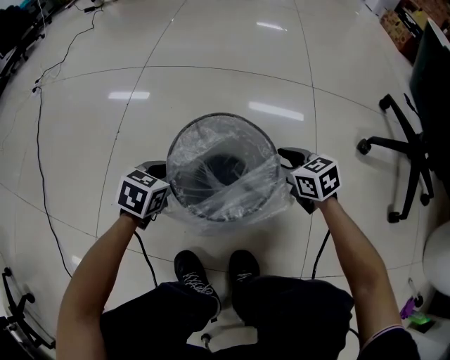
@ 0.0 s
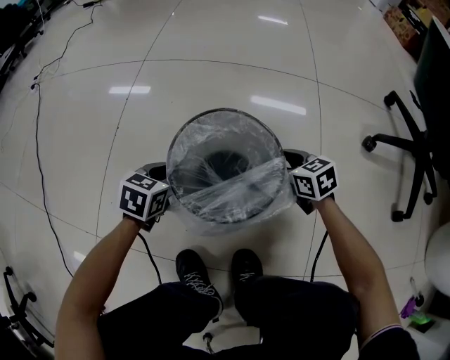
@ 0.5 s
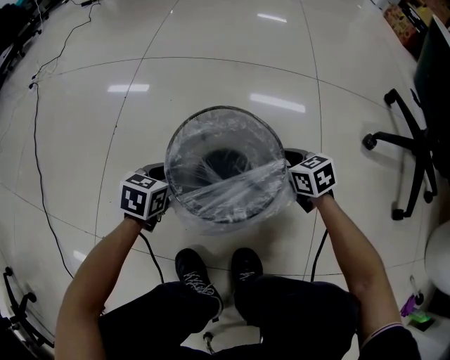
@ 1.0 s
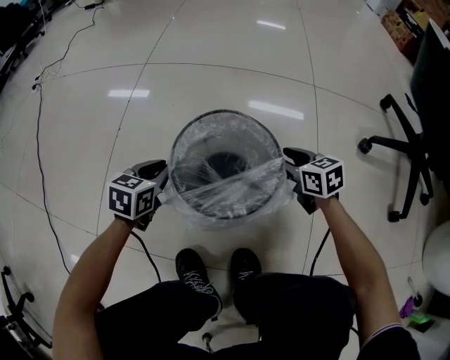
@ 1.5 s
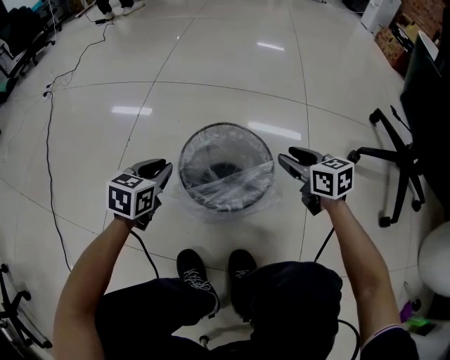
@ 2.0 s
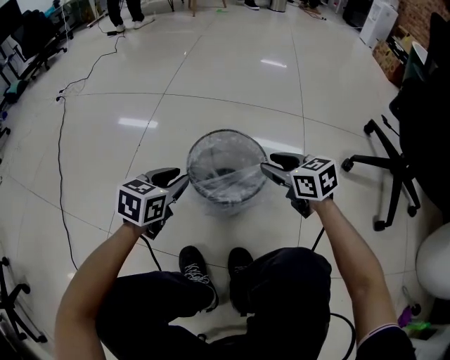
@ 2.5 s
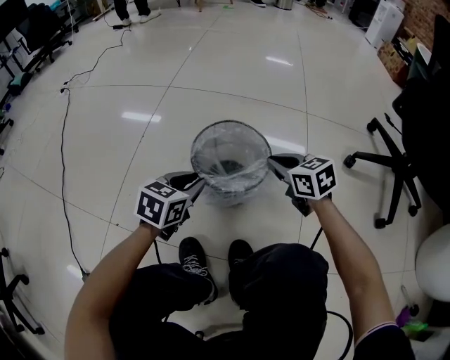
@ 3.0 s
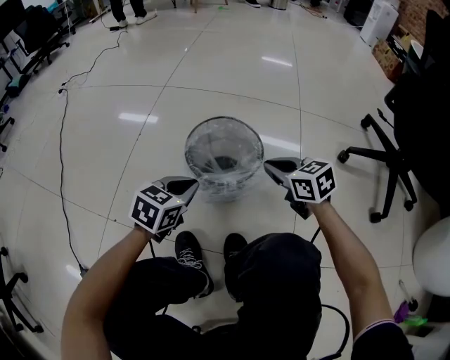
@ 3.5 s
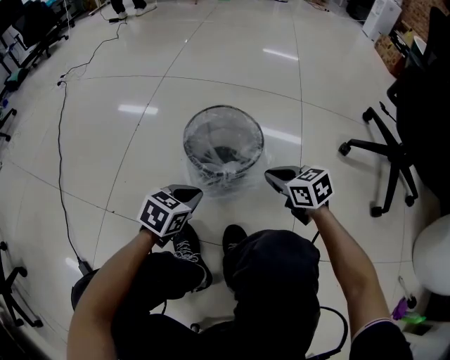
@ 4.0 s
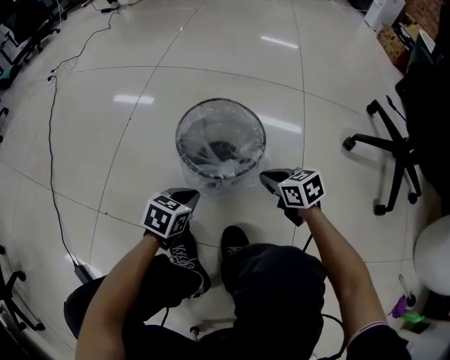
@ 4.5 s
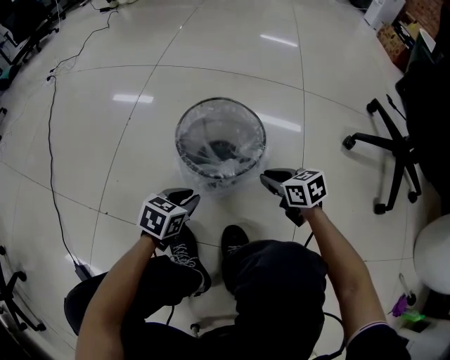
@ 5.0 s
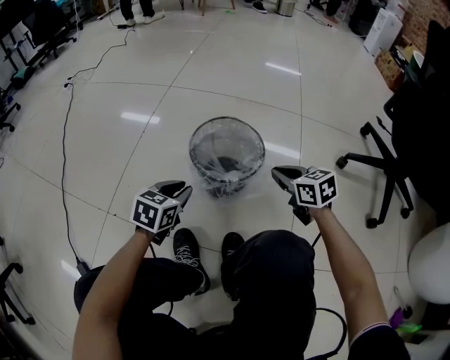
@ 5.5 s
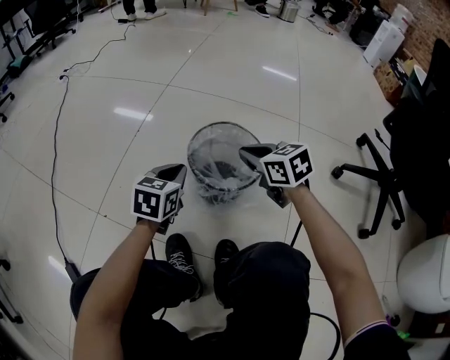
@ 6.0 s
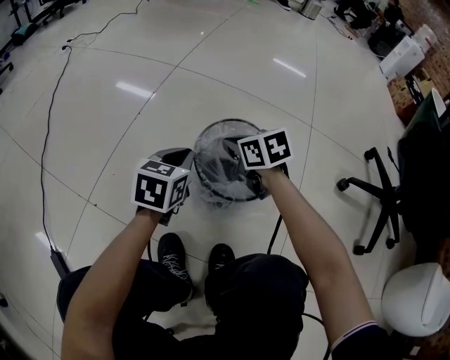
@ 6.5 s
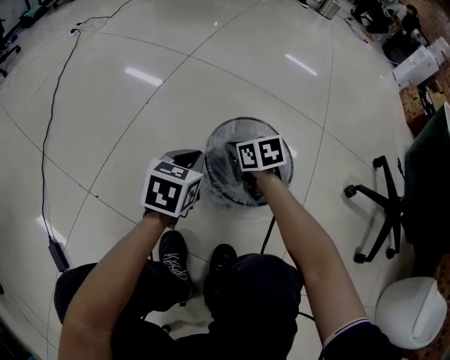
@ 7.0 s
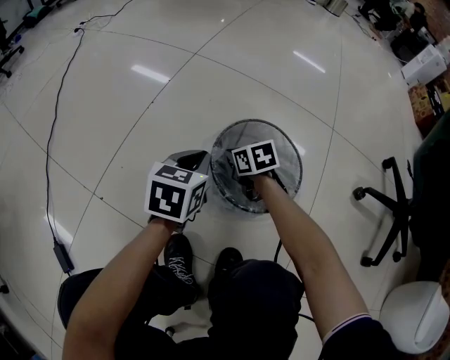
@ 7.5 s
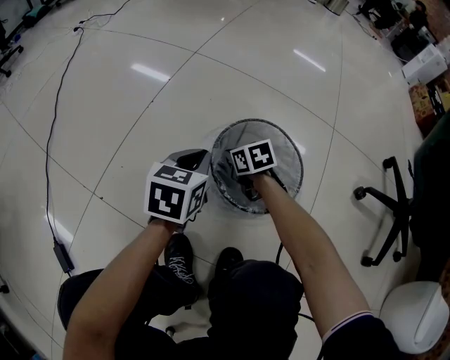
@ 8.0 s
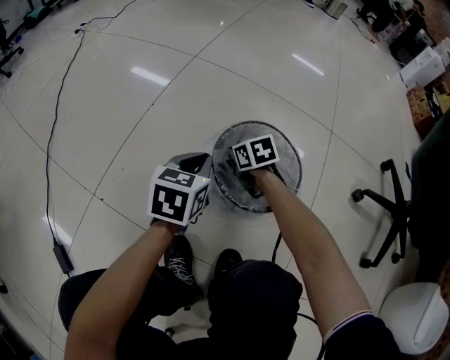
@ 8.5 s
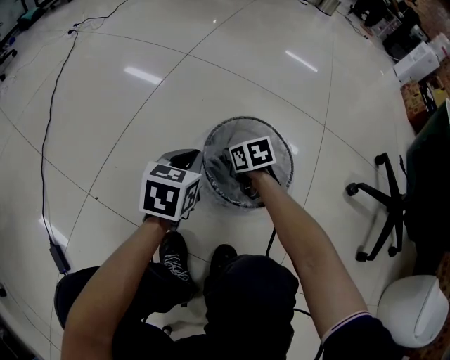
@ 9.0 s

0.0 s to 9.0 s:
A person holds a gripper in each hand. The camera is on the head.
0.0 to 2.0 s: Both grippers travel together upward, roughly 10 cm.
2.0 to 4.5 s: The right gripper travels backward and downward by some 15 cm, and closes up; the left gripper is displaced backward, to the right and downward by roughly 20 cm.
4.5 to 7.0 s: The right gripper heads forward and to the left, covering approximately 25 cm; the left gripper heads forward and upward, covering roughly 15 cm, and changes its angle by some 20 degrees.

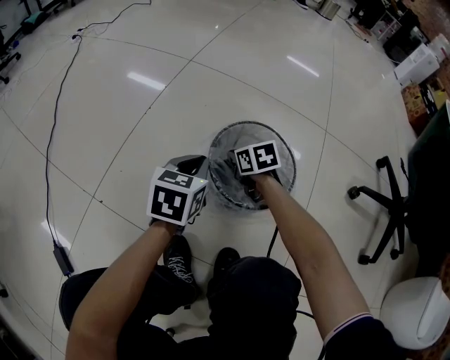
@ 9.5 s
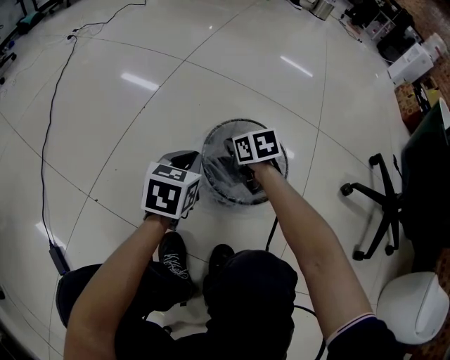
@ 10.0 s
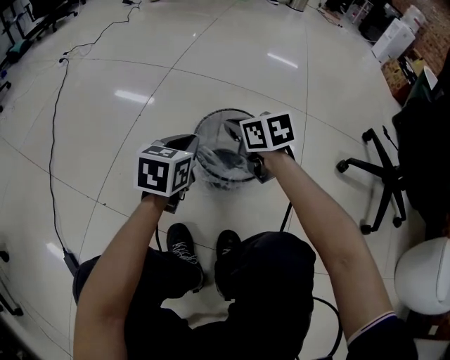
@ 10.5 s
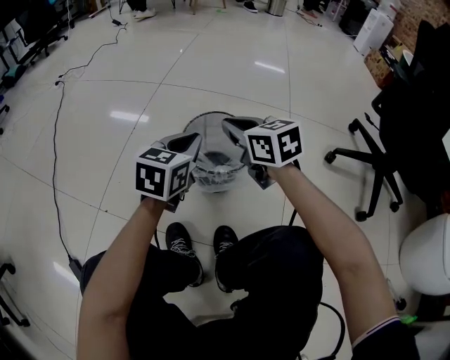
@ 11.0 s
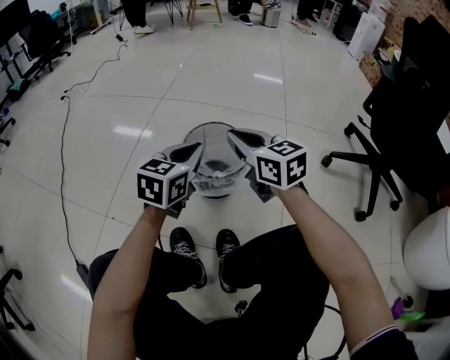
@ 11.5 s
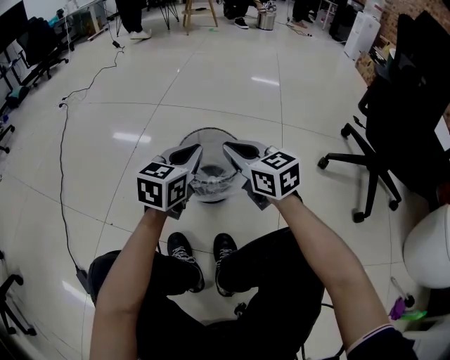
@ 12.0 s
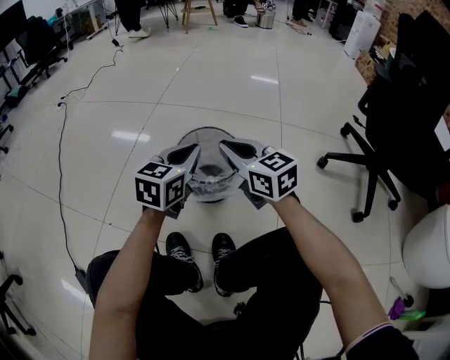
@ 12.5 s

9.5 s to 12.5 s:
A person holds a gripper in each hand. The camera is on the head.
9.5 to 11.0 s: The left gripper shifts about 15 cm upward, backward and to the right; the right gripper travels upward and backward by approximately 30 cm, and changes its angle by about 30 degrees.
11.0 to 12.5 s: The right gripper moves backward, some 5 cm.

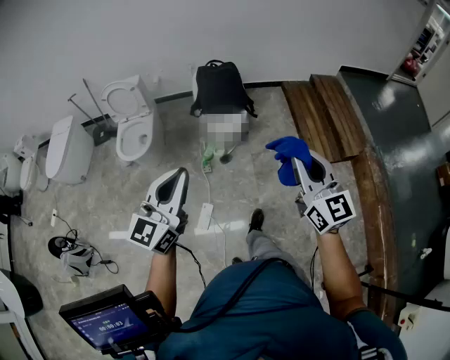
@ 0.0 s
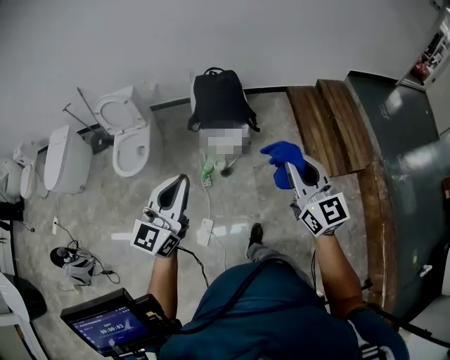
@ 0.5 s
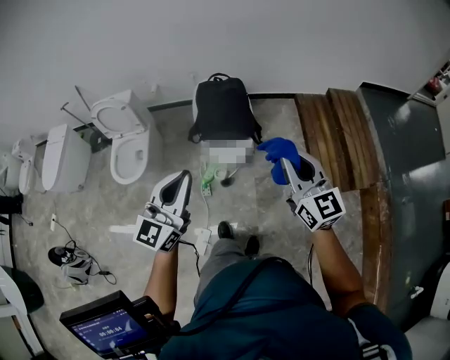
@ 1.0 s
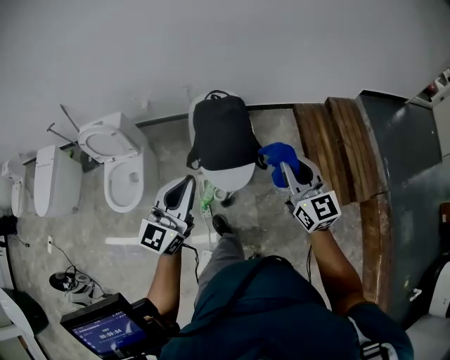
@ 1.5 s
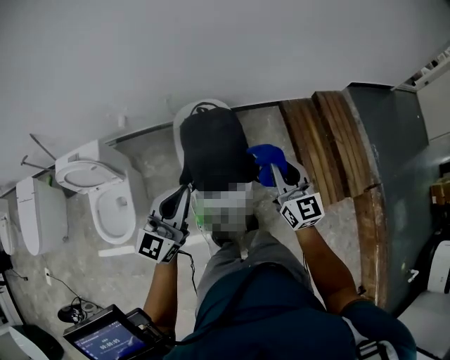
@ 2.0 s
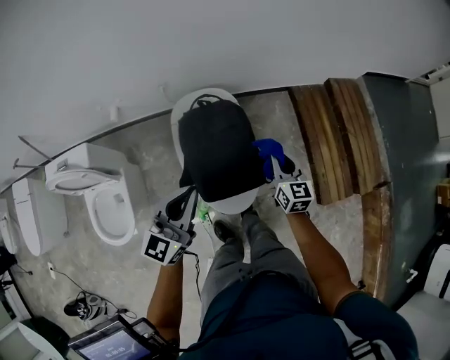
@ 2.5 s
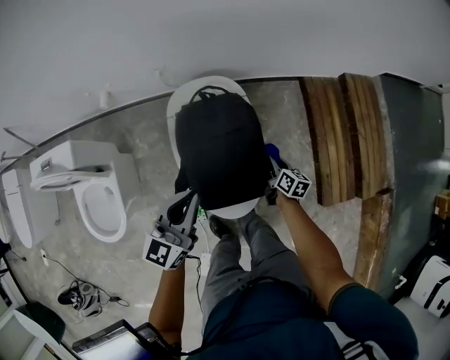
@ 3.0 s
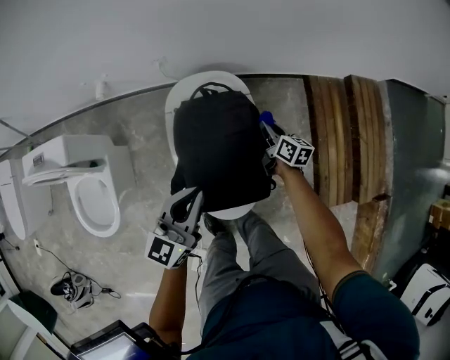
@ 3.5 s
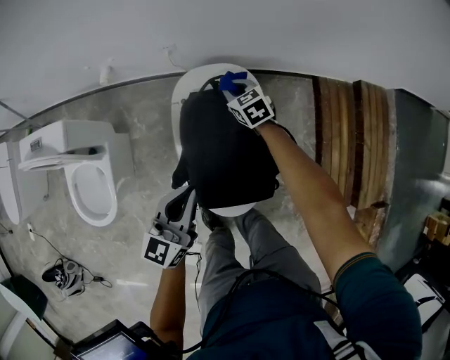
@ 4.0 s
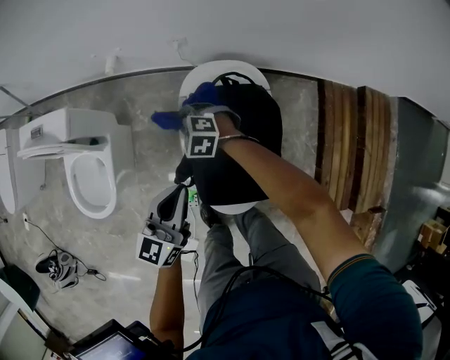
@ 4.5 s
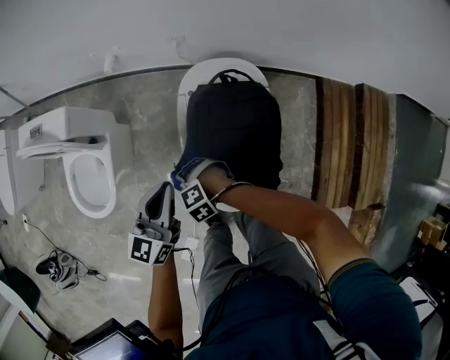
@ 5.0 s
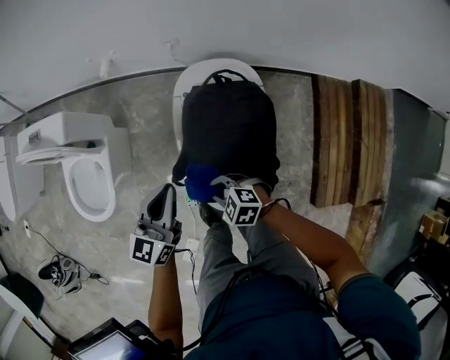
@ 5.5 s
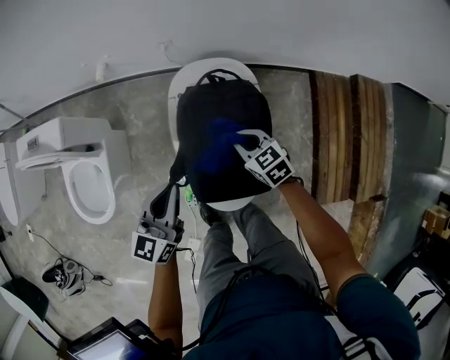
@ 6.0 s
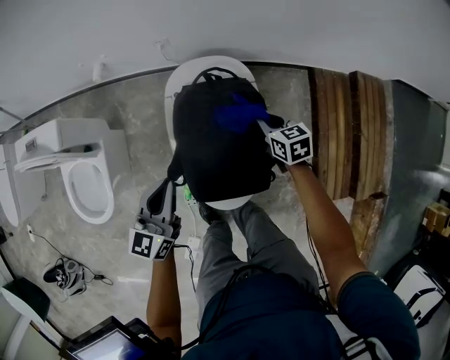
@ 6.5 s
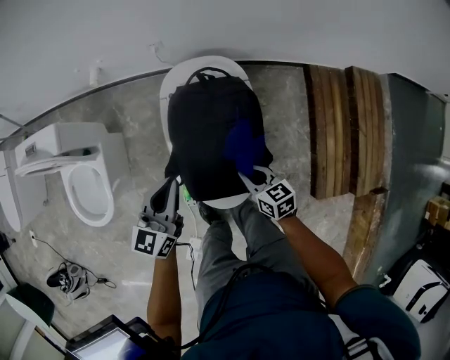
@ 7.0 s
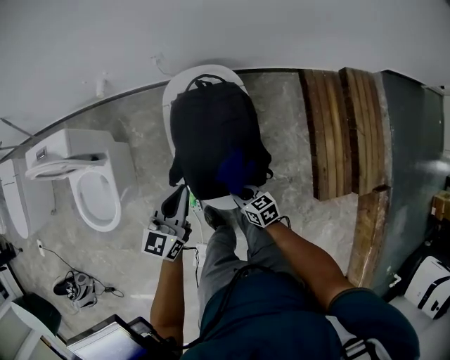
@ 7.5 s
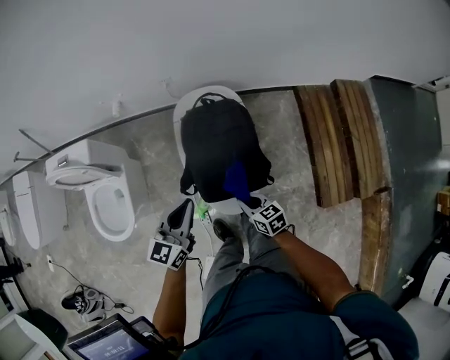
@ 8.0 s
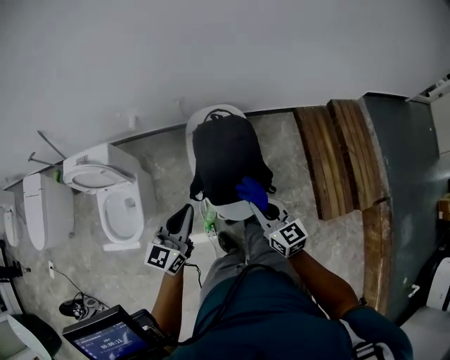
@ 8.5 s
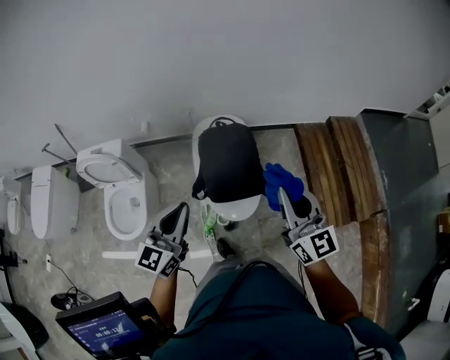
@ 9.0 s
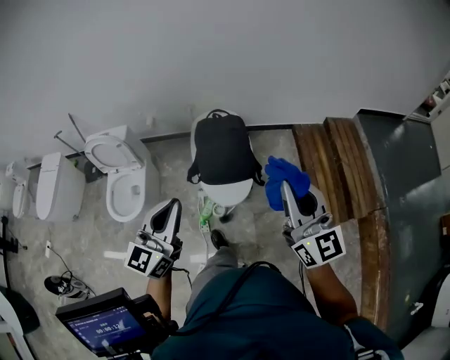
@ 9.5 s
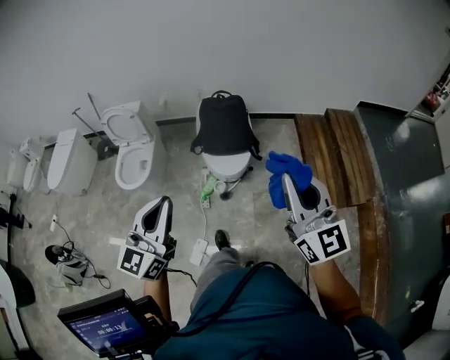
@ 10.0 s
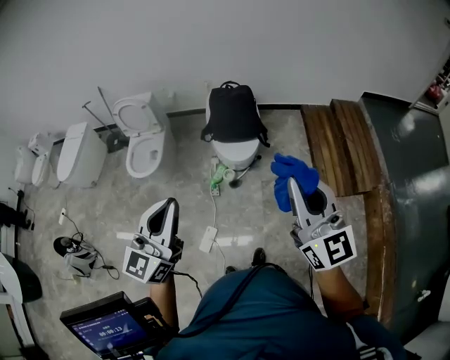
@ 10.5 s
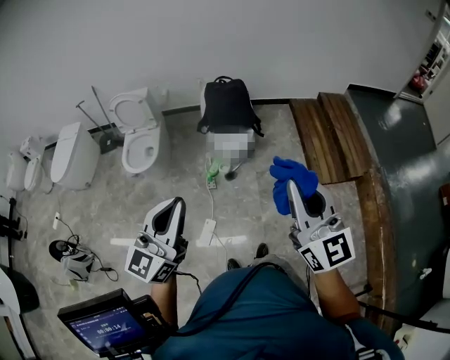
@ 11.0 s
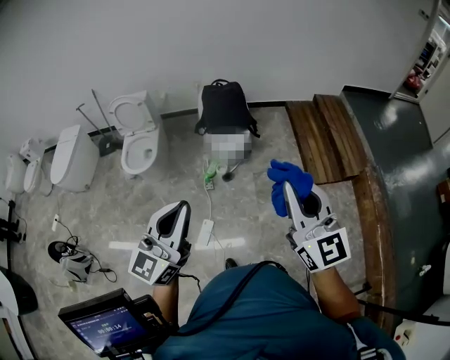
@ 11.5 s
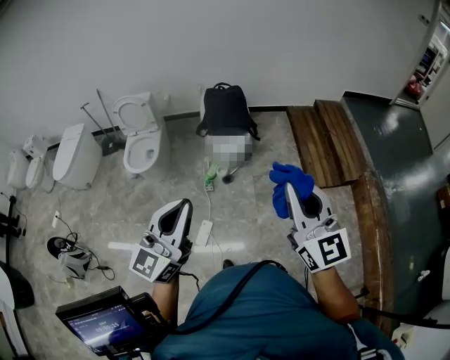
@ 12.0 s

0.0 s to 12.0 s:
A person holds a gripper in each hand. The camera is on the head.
0.0 to 2.0 s: Both grippers are carried forward, roughly 60 cm.
2.0 to 4.0 s: The left gripper is displaced downward and forward by some 25 cm, and rotates about 20 degrees; the right gripper travels downward, forward and to the left by roughly 50 cm, and points its fingers approximately 40 degrees further downward.
6.0 to 8.0 s: The right gripper moves backward, roughly 20 cm, and changes its angle by roughly 20 degrees, while the left gripper is displaced backward and upward by approximately 10 cm.
8.0 to 10.0 s: The two grippers travel together, backward, some 50 cm. The left gripper moves upward, about 30 cm, and swivels roughly 30 degrees; the right gripper shifts roughly 50 cm upward, and angles its fingers upward, by approximately 50 degrees.
10.0 to 12.0 s: Both grippers move backward, approximately 25 cm.

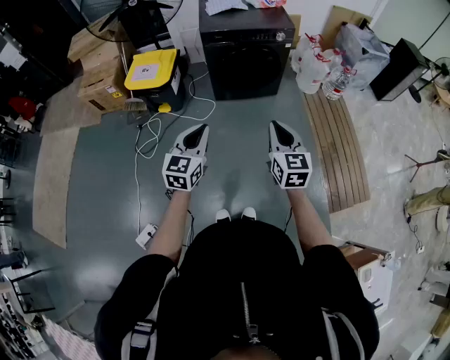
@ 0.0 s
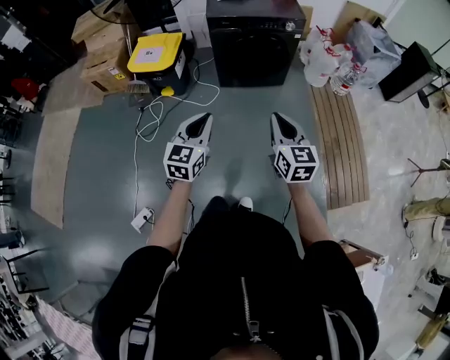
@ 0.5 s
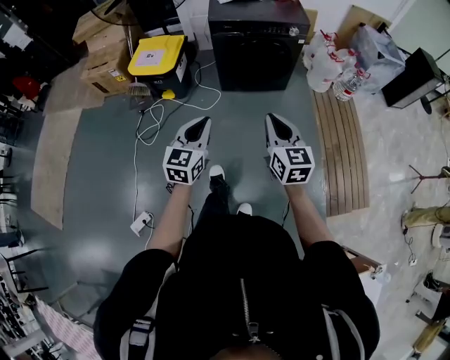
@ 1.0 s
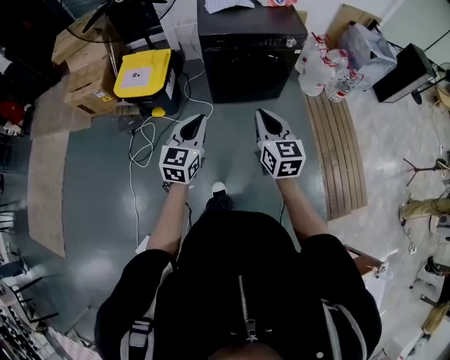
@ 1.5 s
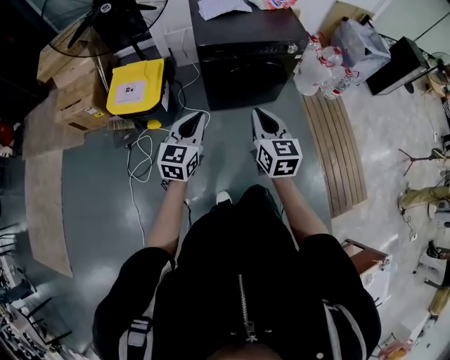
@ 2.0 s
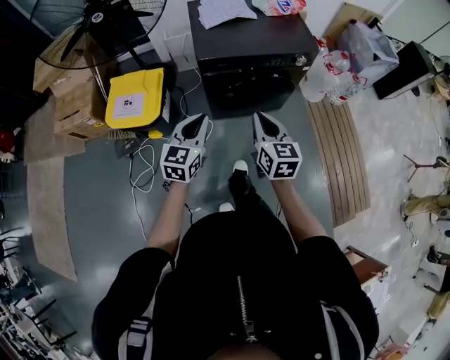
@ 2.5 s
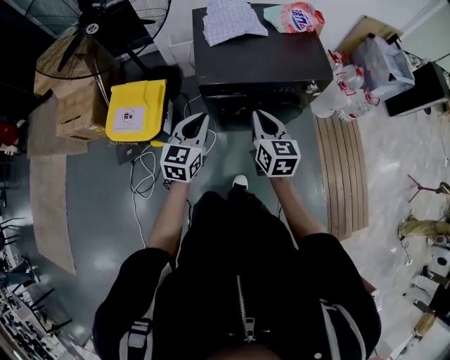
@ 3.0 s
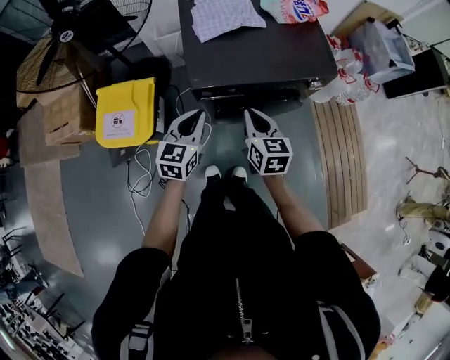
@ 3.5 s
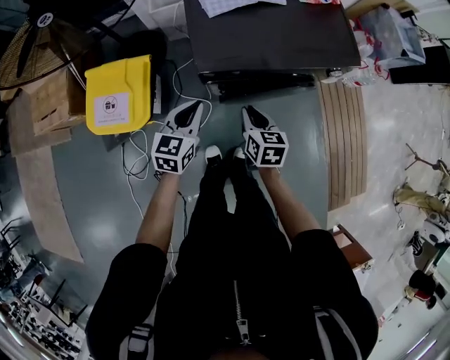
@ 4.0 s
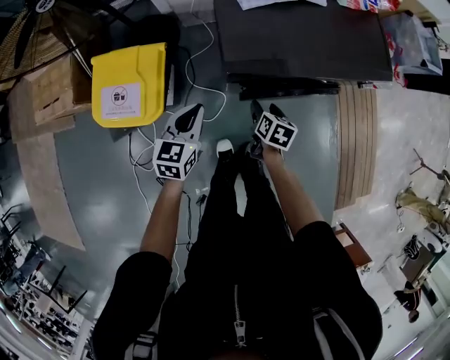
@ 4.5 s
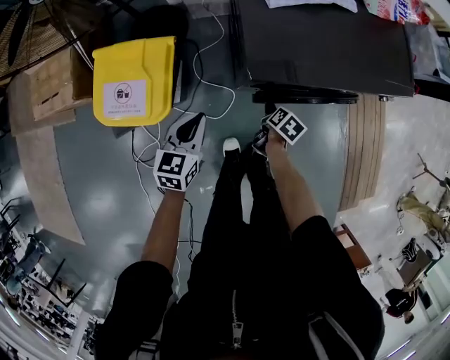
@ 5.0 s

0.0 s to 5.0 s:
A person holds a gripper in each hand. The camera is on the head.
0.0 to 2.5 s: Both grippers are carried forward, roughly 40 cm.
2.5 to 5.0 s: The left gripper is displaced downward, forward and to the left by approximately 35 cm, and swivels some 20 degrees. The right gripper is displaced downward and forward by roughly 50 cm, tilts its fingers about 50 degrees downward, and opens up.
